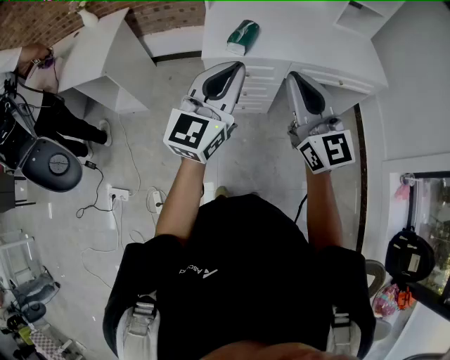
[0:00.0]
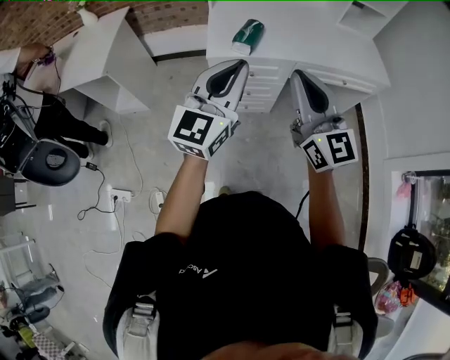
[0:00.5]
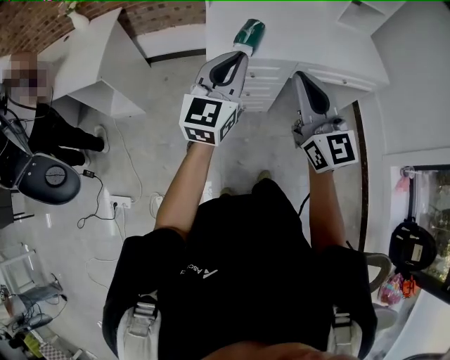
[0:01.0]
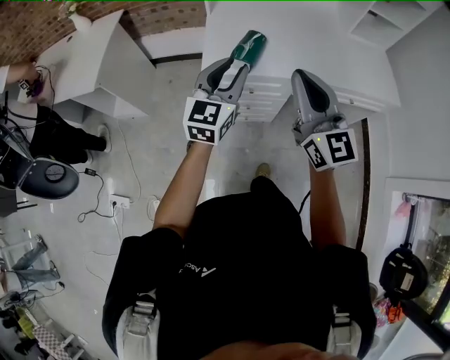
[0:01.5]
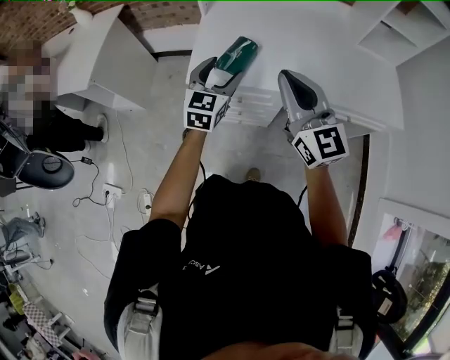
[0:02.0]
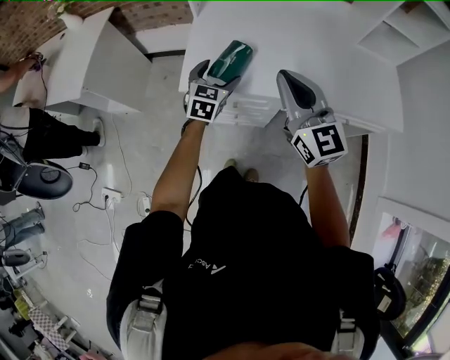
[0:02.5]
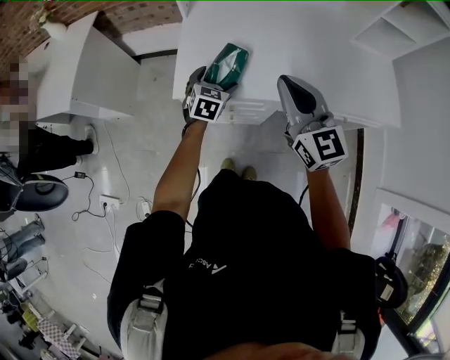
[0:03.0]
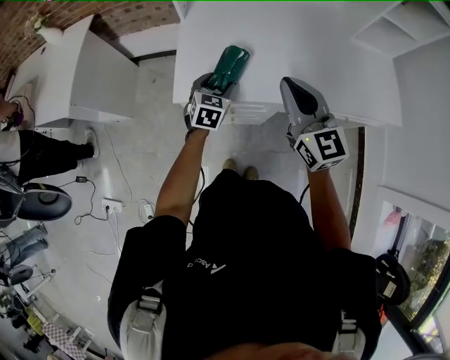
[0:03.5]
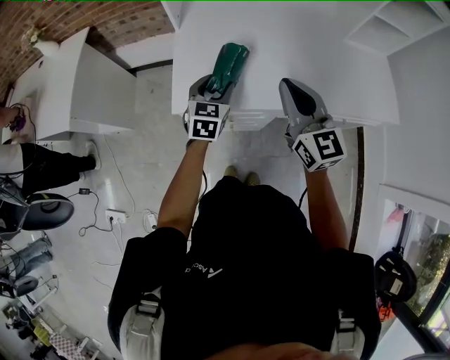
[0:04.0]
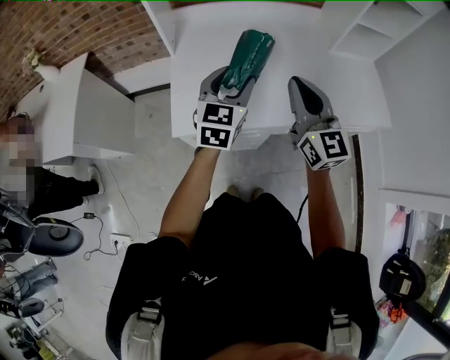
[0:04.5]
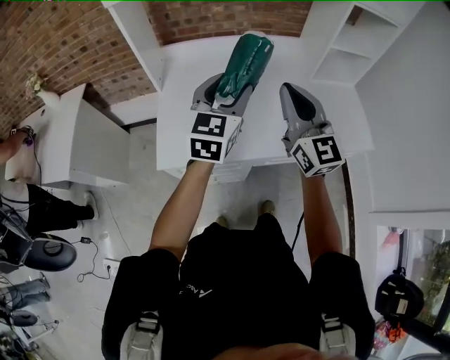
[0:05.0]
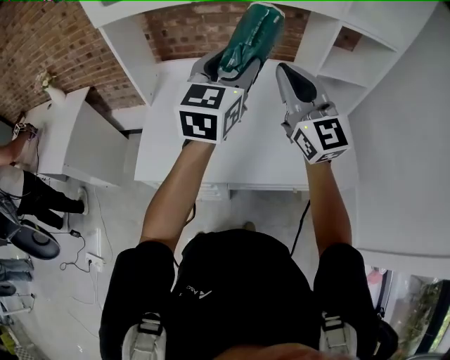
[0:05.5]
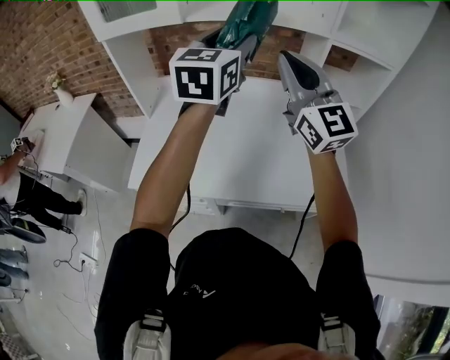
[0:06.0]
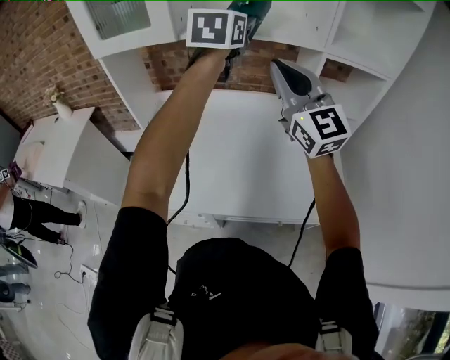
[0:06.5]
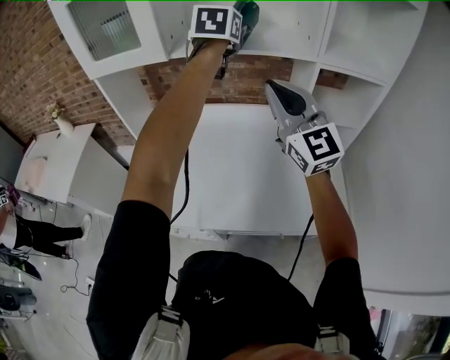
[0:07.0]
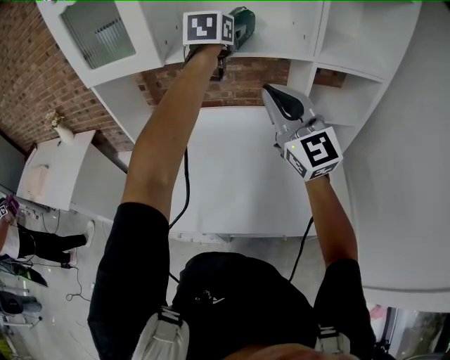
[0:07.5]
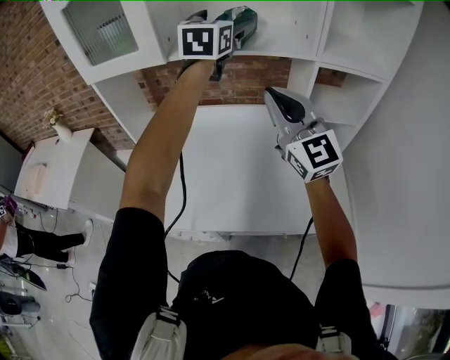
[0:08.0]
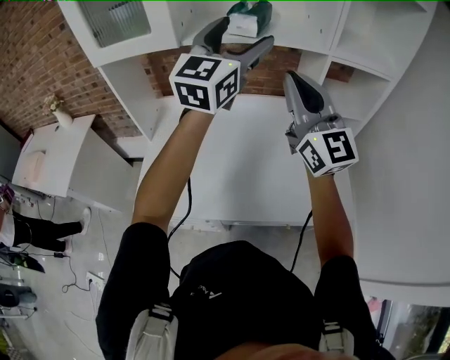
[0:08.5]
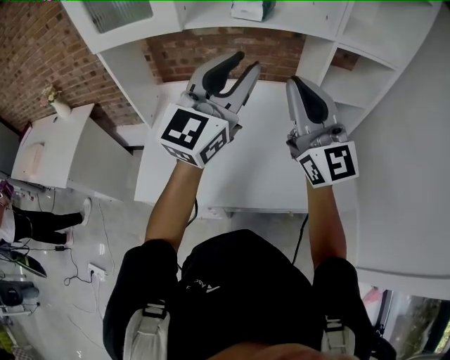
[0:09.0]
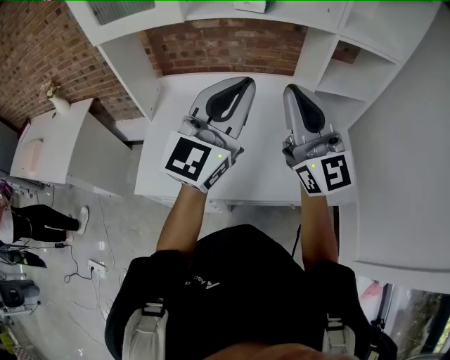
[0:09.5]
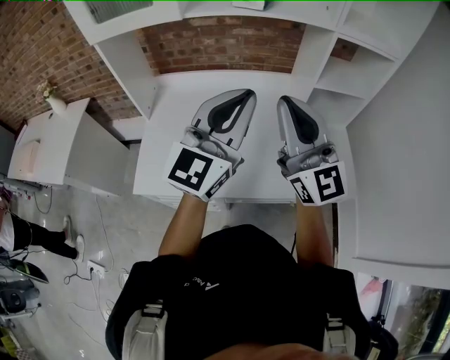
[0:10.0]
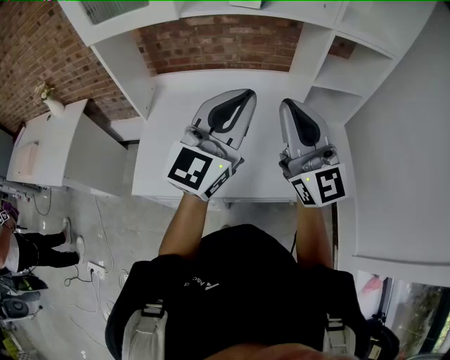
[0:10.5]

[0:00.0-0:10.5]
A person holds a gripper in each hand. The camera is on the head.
0:00.0 to 0:02.0: The right gripper goes about 25 cm forward, while the left gripper heads forward and downward, covering approximately 35 cm, turns by roughly 30 degrees, and opens its fingers.
0:02.0 to 0:04.0: Both grippers travel together forward and downward, some 15 cm.
0:04.0 to 0:06.5: The grippers both shift upward, to the right and forward by about 50 cm. The left gripper changes its angle by roughly 20 degrees, while the right gripper changes its angle by roughly 30 degrees.
0:06.5 to 0:08.5: The left gripper heads backward, covering some 5 cm, turns by about 30 degrees, and opens up.
0:08.5 to 0:10.5: The left gripper moves backward and downward, some 20 cm, and closes up. The right gripper travels backward and downward by about 10 cm.

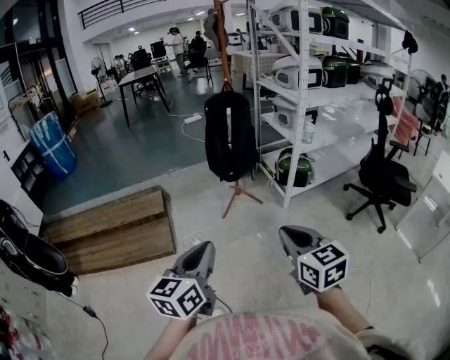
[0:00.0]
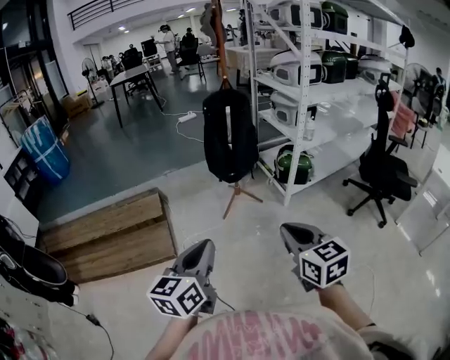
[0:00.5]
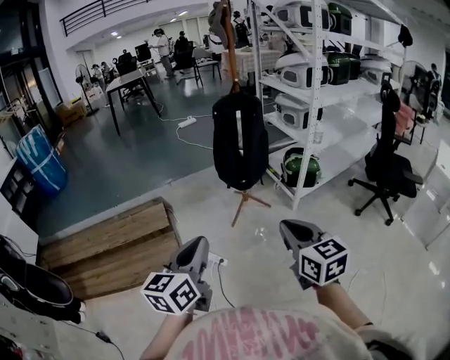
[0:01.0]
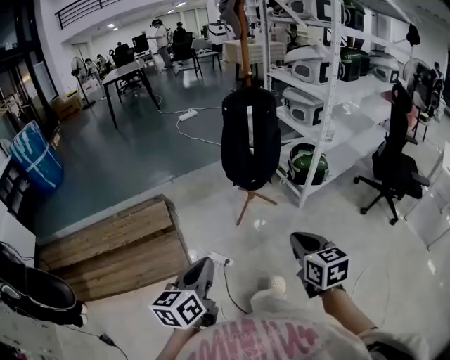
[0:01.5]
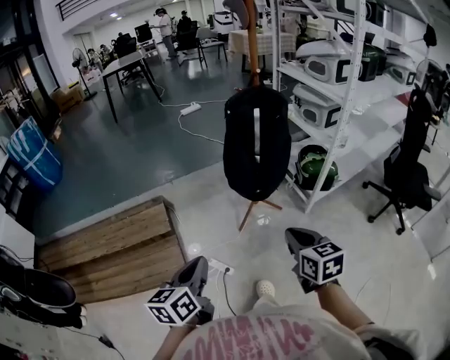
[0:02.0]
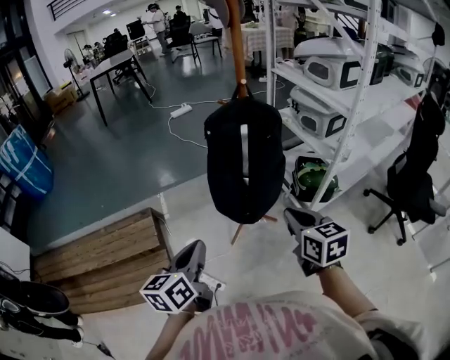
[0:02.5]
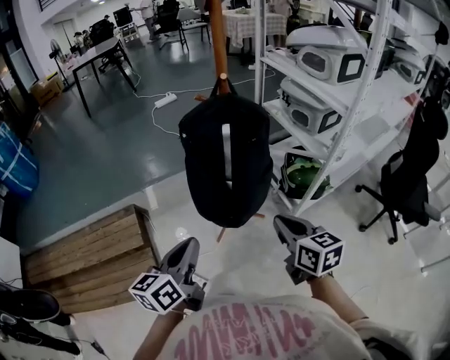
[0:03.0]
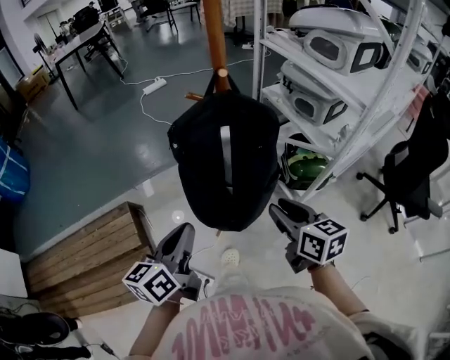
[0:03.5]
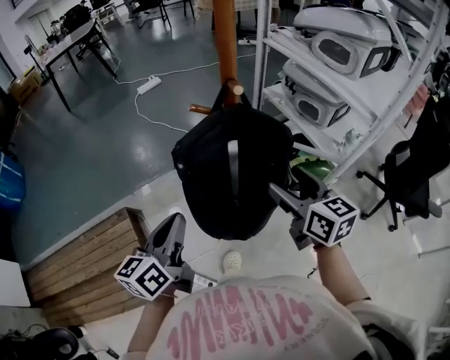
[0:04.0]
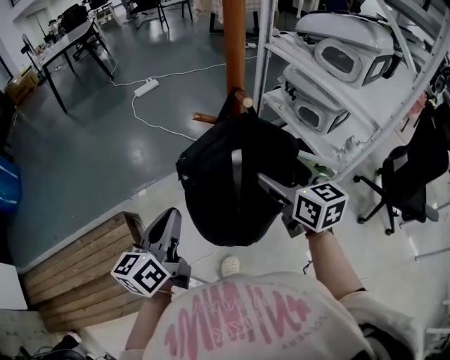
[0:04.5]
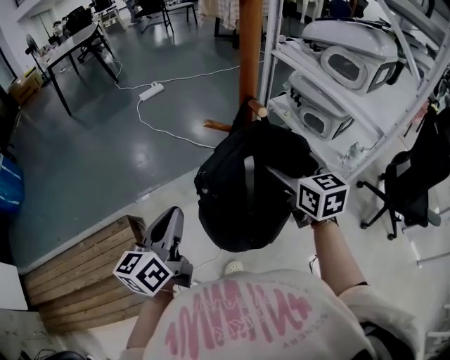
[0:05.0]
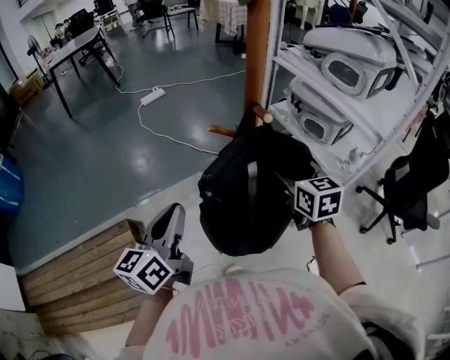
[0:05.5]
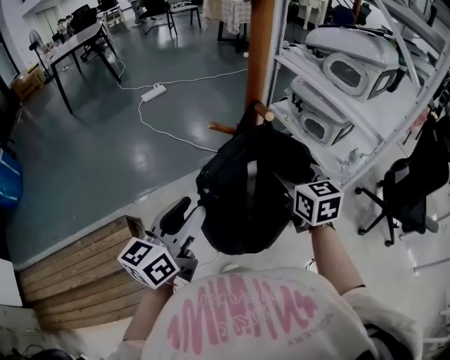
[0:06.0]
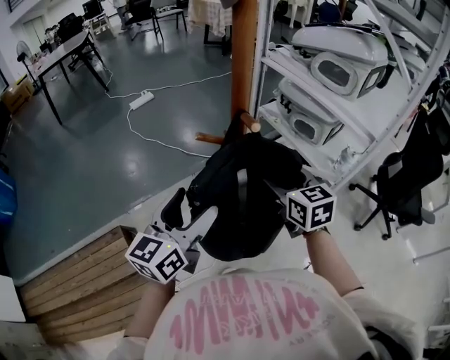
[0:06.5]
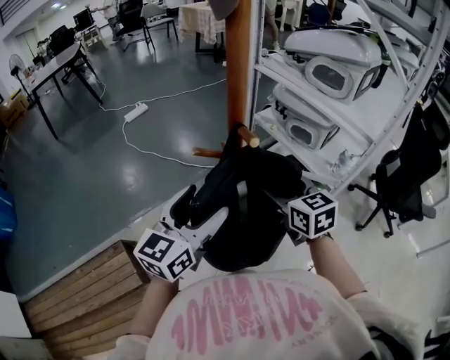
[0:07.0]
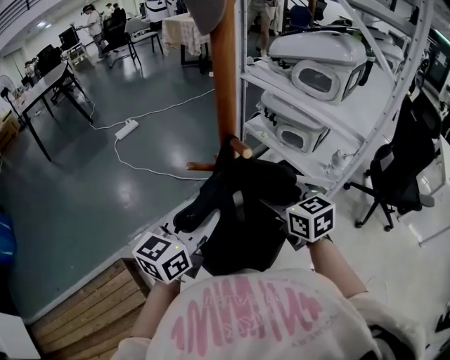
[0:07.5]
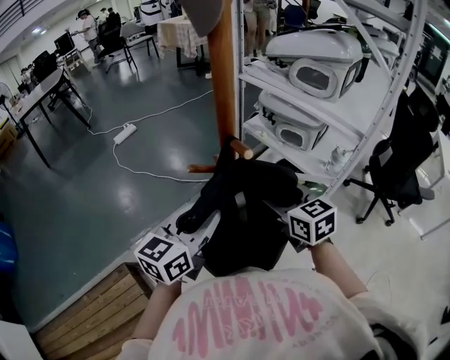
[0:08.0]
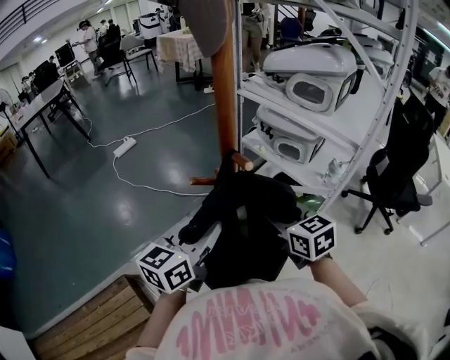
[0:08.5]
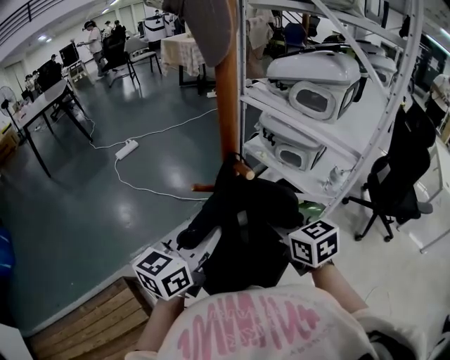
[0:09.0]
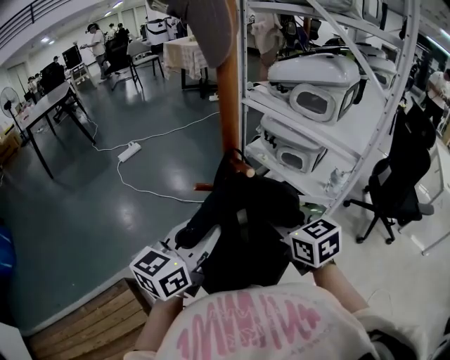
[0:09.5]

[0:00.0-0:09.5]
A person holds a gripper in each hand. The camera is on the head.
0:00.0 to 0:02.0: The grippers both shift forward and to the left by roughly 35 cm.
0:02.0 to 0:04.0: The two grippers travel together, forward, about 40 cm. The right gripper opens up.
0:04.0 to 0:05.5: The left gripper goes about 5 cm forward, while the right gripper goes about 10 cm forward.
0:05.5 to 0:07.5: The left gripper goes some 15 cm forward and to the right, turns by about 30 degrees, and opens its fingers.
0:07.5 to 0:09.5: The right gripper moves about 5 cm.

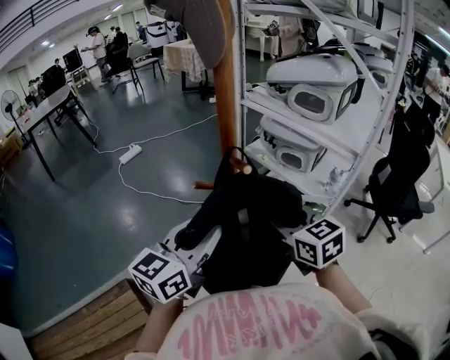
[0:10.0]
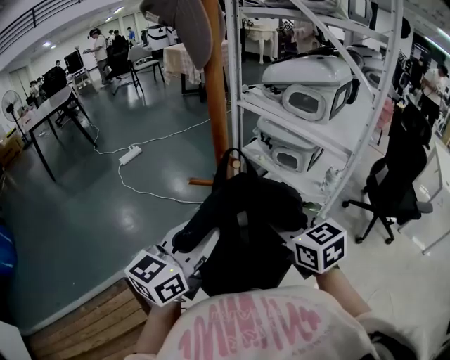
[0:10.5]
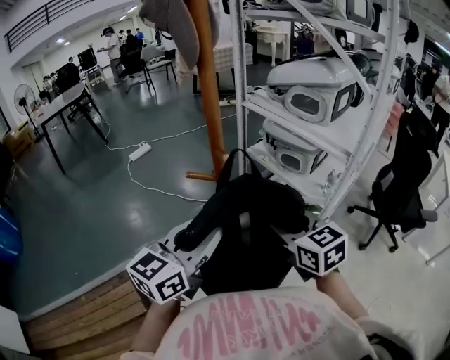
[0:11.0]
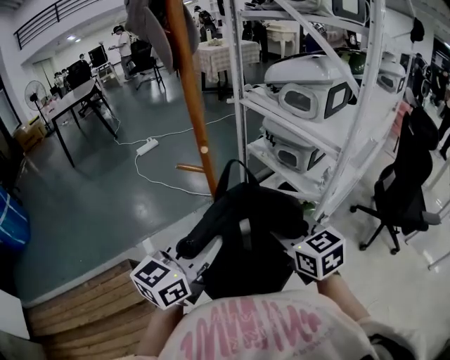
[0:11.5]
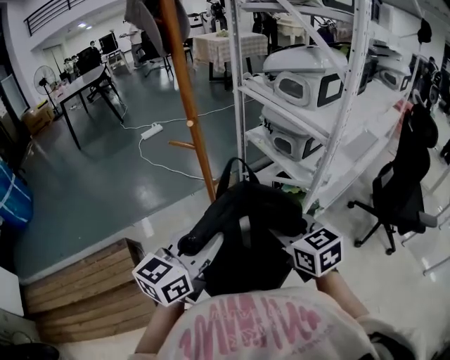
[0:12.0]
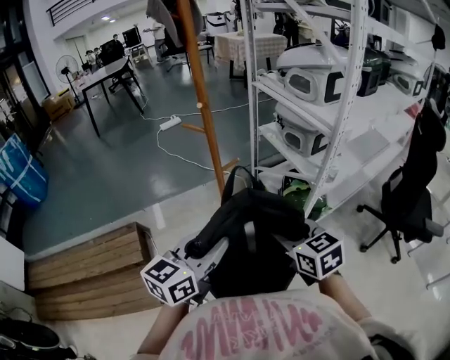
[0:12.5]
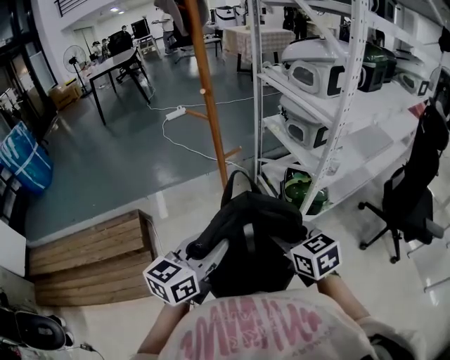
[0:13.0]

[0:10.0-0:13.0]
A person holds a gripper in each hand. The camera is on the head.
0:10.0 to 0:11.5: The left gripper heads backward and to the right, covering roughly 15 cm, while the right gripper moves to the right and backward, roughly 10 cm.
0:11.5 to 0:13.0: The right gripper heads backward and downward, covering approximately 20 cm; the left gripper heads backward and to the right, covering about 20 cm.

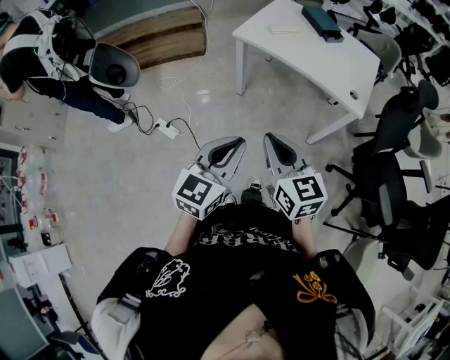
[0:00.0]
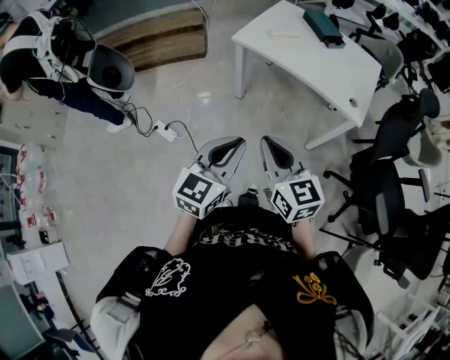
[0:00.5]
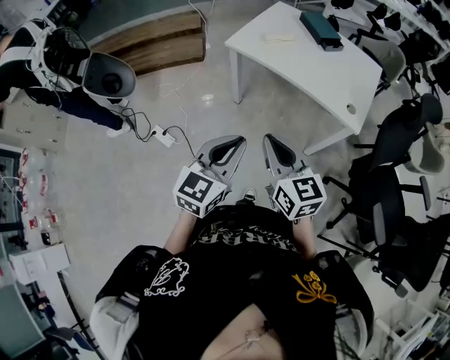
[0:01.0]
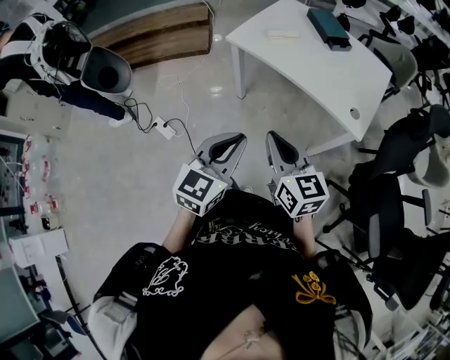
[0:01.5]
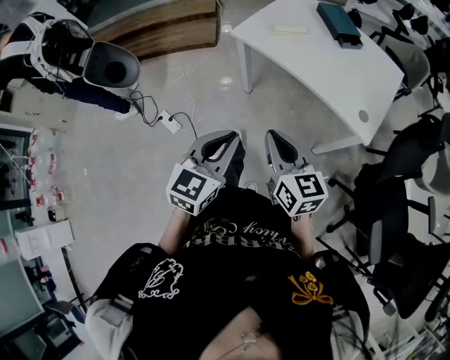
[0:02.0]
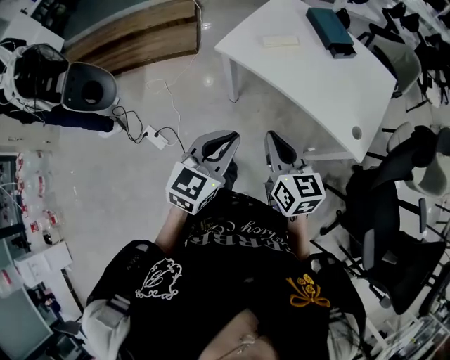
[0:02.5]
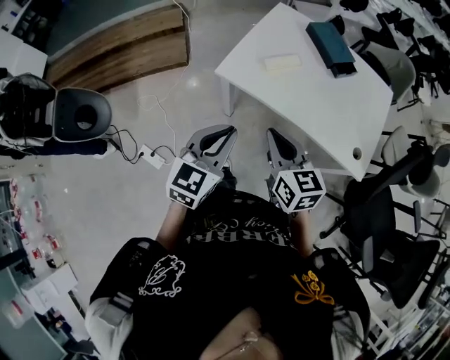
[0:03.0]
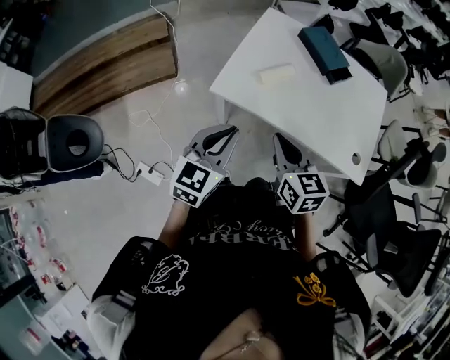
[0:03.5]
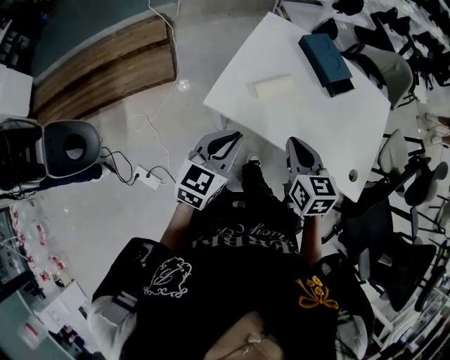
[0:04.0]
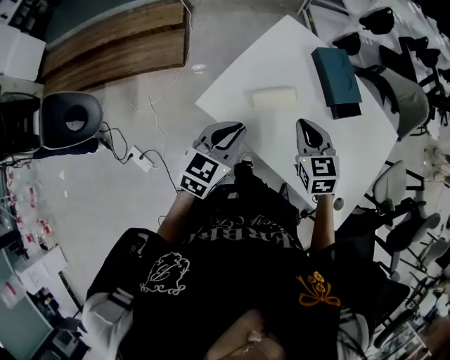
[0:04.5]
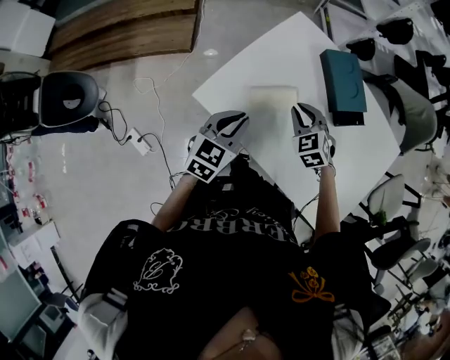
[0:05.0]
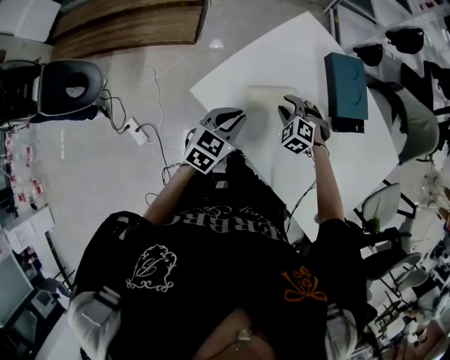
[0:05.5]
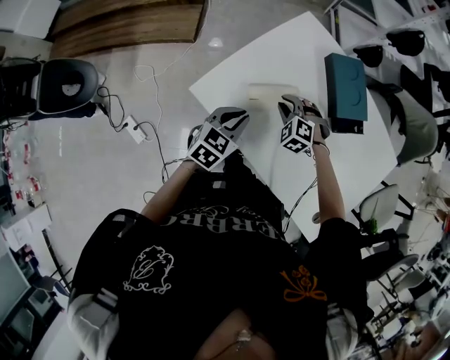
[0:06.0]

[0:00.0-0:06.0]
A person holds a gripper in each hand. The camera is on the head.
0:00.0 to 0:02.0: Both grippers move forward and to the right, about 20 cm.
0:02.0 to 0:04.0: The two grippers go approximately 40 cm forward. The right gripper swivels about 30 degrees.
0:04.0 to 0:06.0: The left gripper travels forward, downward and to the right by approximately 20 cm, and turns by approximately 20 degrees; the right gripper heads forward and downward, covering about 30 cm, and twists about 80 degrees counterclockwise, seen from behind.
